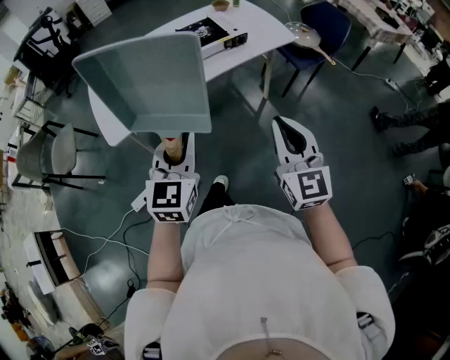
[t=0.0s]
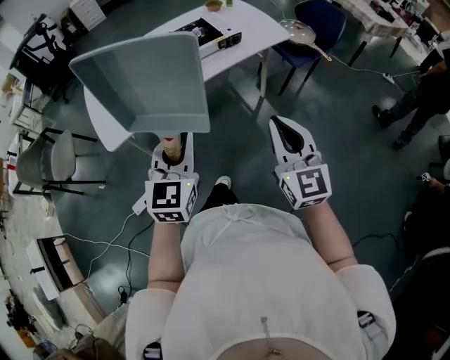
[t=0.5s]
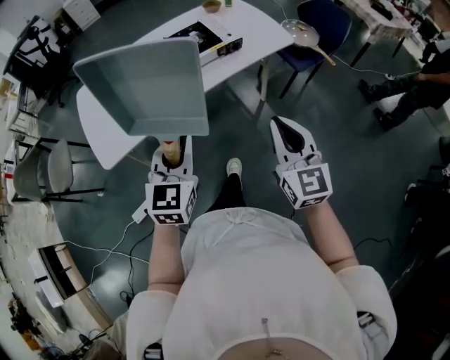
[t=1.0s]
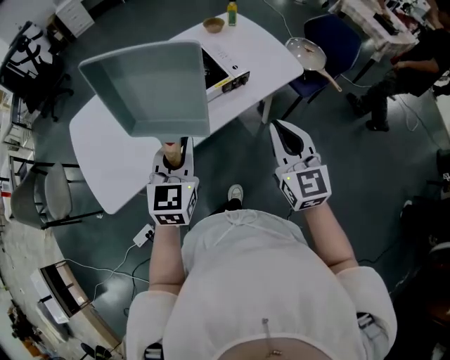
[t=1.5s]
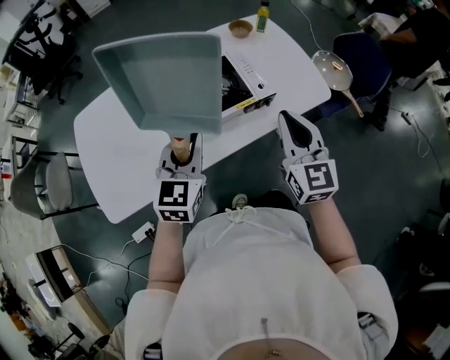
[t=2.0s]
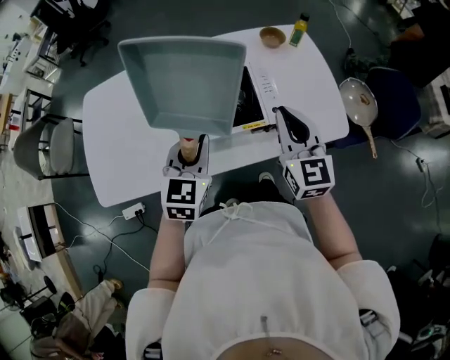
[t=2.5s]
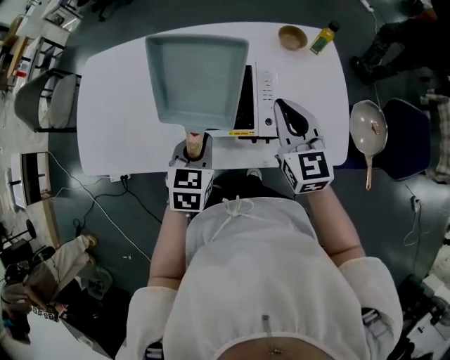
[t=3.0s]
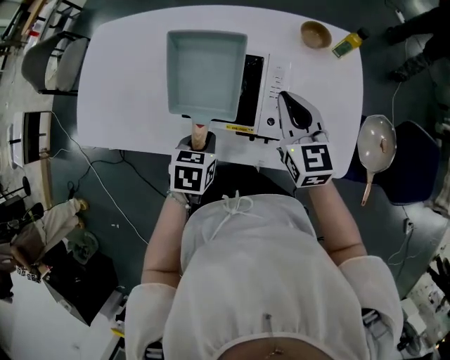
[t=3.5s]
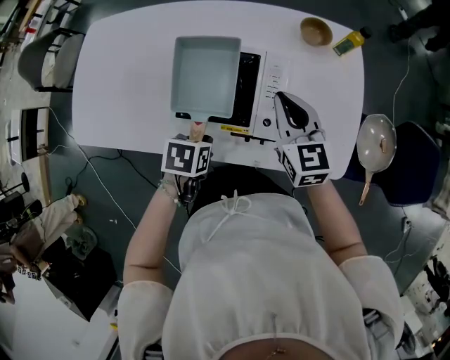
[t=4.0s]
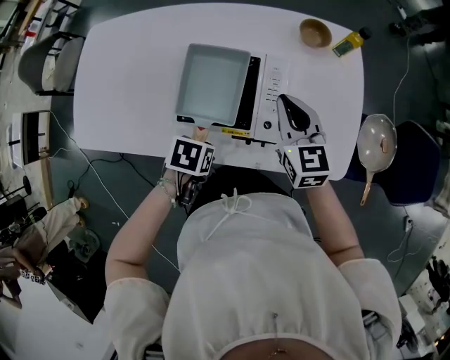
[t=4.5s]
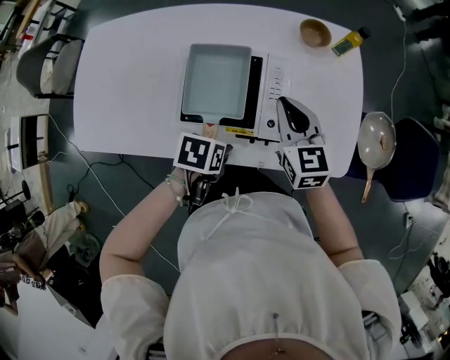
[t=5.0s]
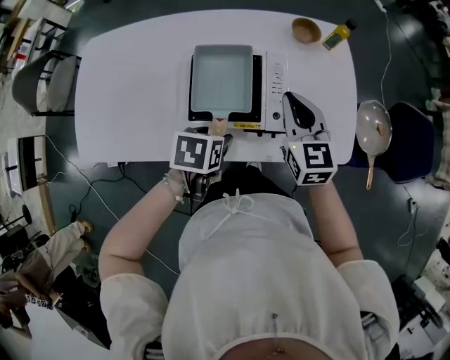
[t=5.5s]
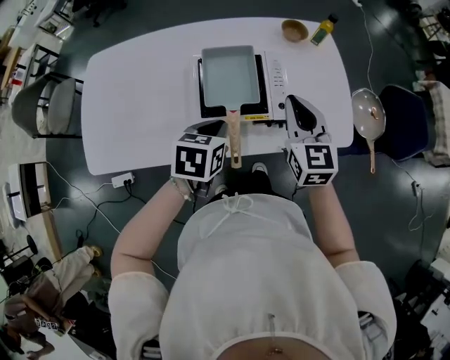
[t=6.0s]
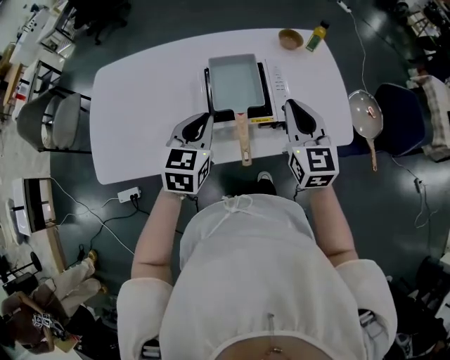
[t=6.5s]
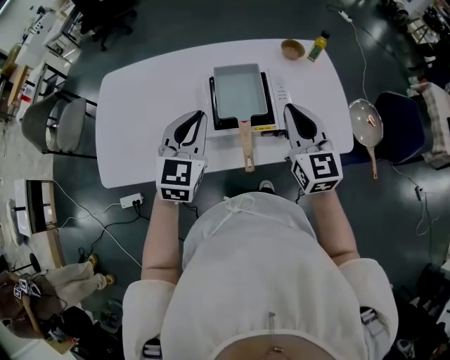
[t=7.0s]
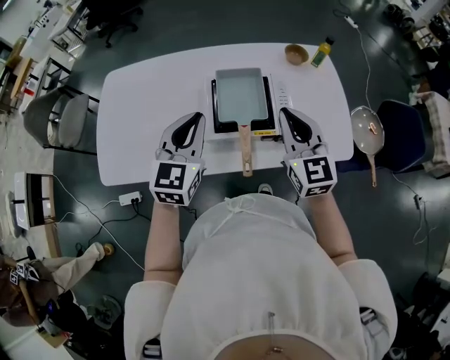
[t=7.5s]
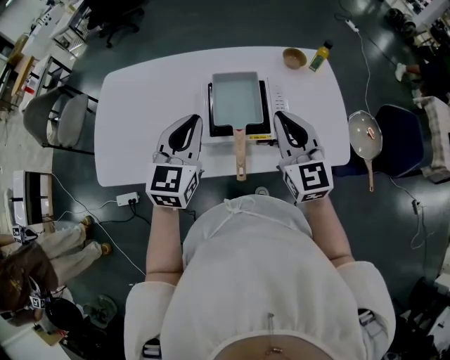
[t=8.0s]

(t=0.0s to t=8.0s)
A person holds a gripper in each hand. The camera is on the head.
t=0.0s - t=2.0s: The pair of grippers is taken forward, approximately 40 cm.
t=2.0s - t=4.0s: The right gripper shifts by about 30 cm, and changes its angle by approximately 40 degrees; the left gripper travels downward by roughly 20 cm, and tilts its fingers roughly 50 degrees downward.
t=4.0s - t=6.0s: The left gripper moves upward, about 10 cm, turns by approximately 30 degrees, and opens and closes again. Meanwhile the right gripper heads backward and upward, covering roughly 10 cm, and changes its angle by some 20 degrees.
t=6.0s - t=8.0s: The right gripper shifts approximately 5 cm upward; the left gripper shifts approximately 15 cm upward and to the left, and points its fingers approximately 40 degrees further upward.

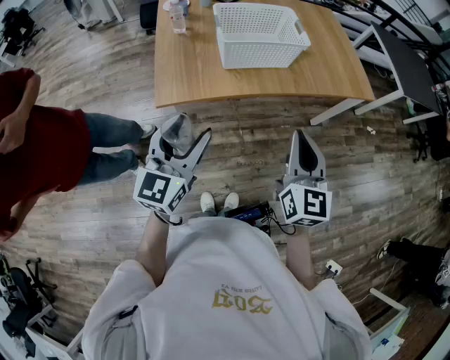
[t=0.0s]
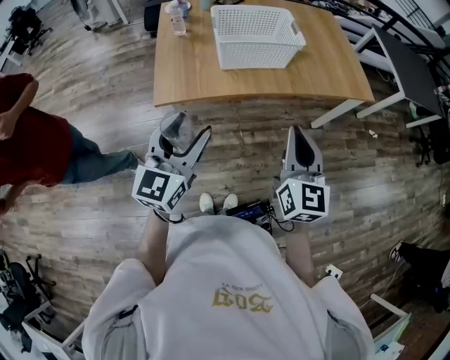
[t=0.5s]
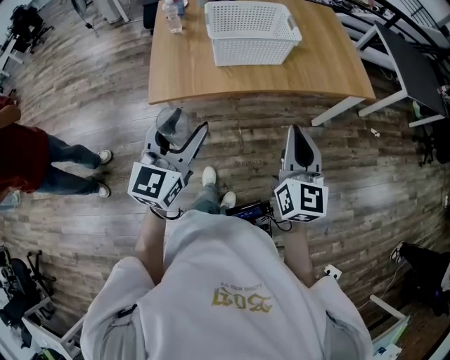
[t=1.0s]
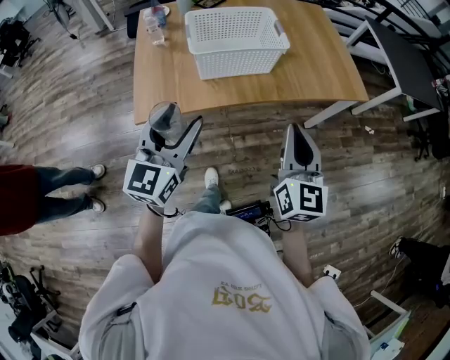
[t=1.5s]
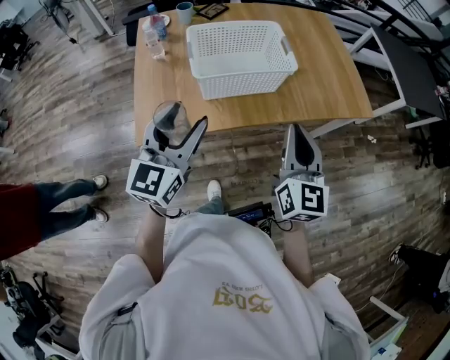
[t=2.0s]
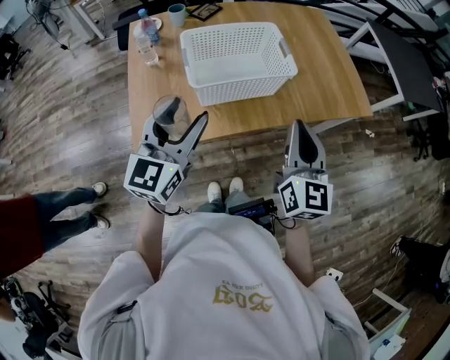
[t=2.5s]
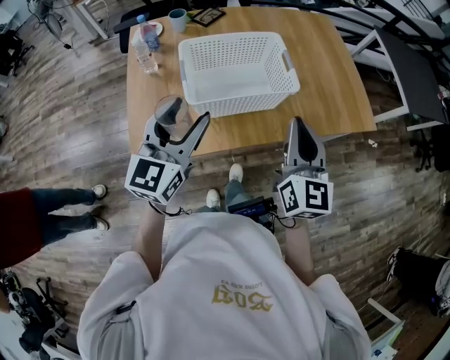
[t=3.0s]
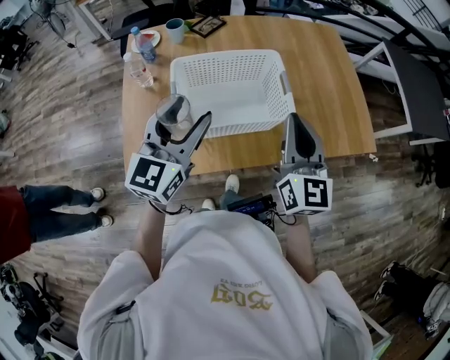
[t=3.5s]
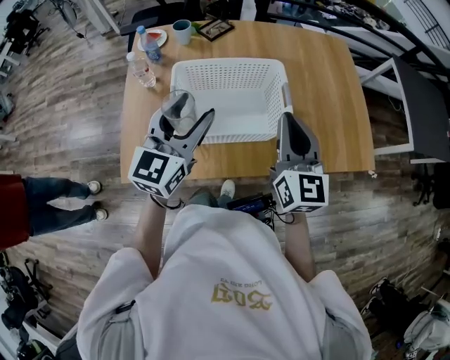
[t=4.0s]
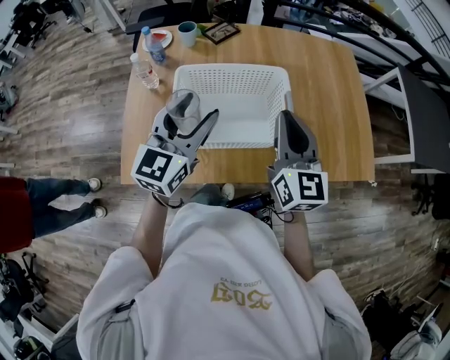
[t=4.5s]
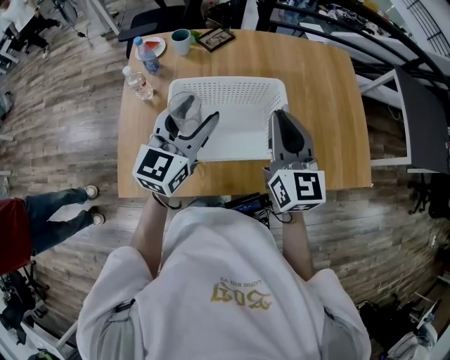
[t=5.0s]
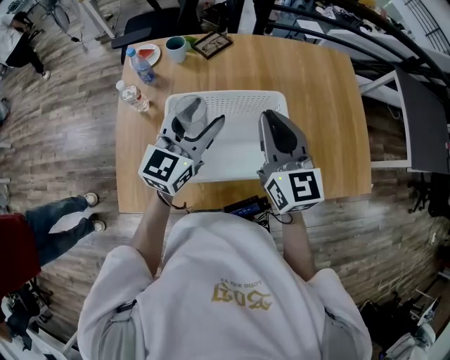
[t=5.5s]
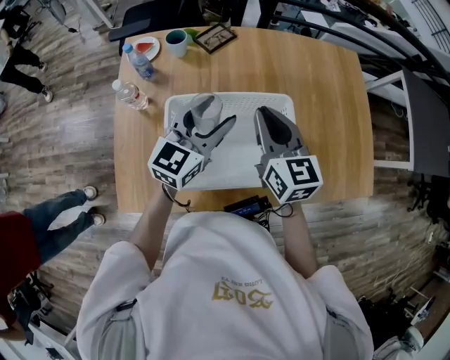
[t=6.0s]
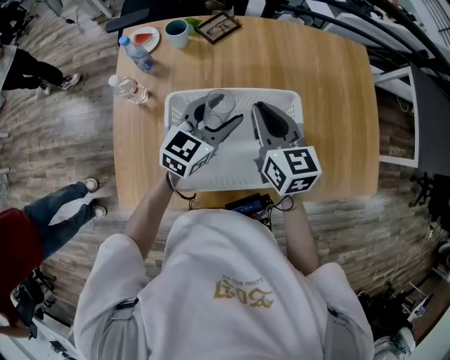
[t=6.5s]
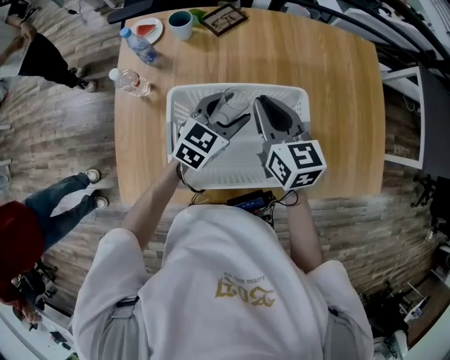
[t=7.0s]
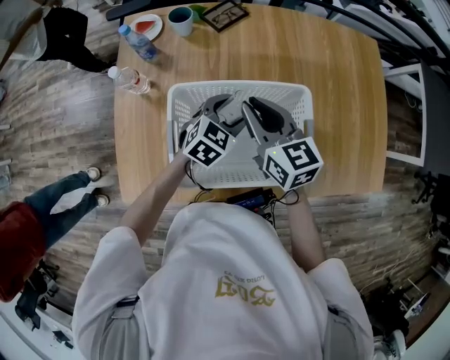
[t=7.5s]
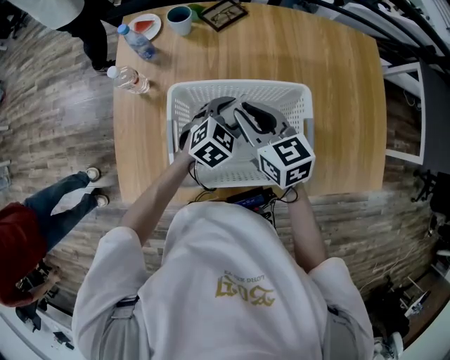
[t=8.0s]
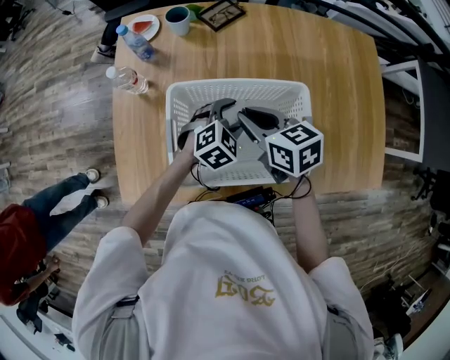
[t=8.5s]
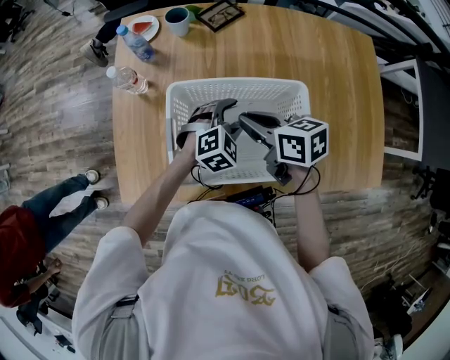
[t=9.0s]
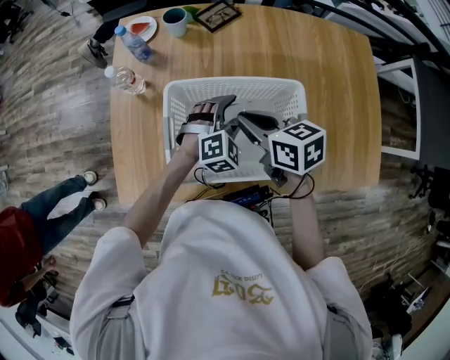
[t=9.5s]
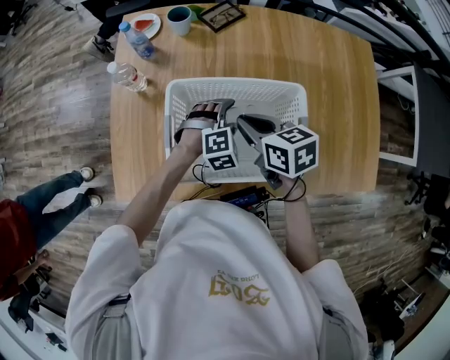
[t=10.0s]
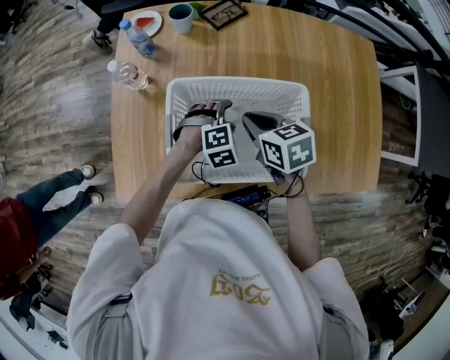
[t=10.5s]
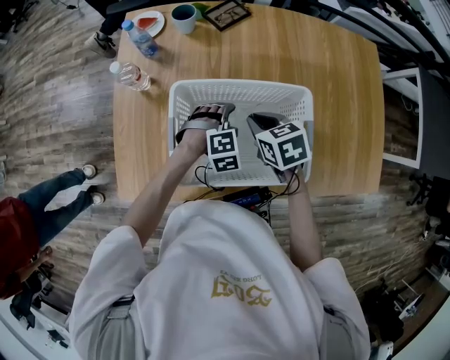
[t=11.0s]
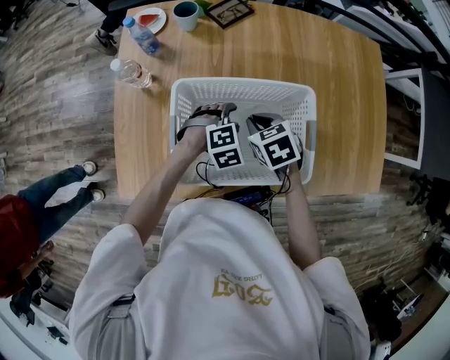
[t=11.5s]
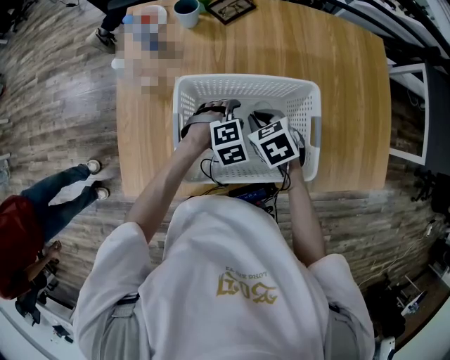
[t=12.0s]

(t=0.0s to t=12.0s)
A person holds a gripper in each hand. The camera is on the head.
t=0.0s - t=2.0s: Both grippers move forward, roughly 15 cm.
t=2.0s - t=4.0s: The two grippers go approximately 25 cm forward.
t=4.0s - t=6.0s: The left gripper goes roughly 15 cm forward, while the right gripper heads forward and to the left, covering roughly 15 cm.
t=6.0s - t=8.0s: The left gripper heads downward, covering some 15 cm, and angles its fingers downward, by approximately 40 degrees. Meanwhile the right gripper travels downward and to the left by some 10 cm, and swivels about 20 degrees.
t=8.0s - t=10.0s: The right gripper changes its angle by approximately 20 degrees; the left gripper rotates roughly 30 degrees.
t=10.0s - t=12.0s: The right gripper goes some 10 cm downward, and turns by some 30 degrees.

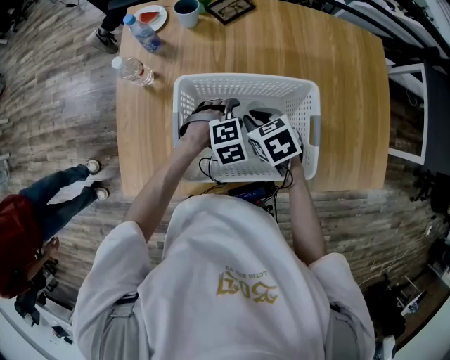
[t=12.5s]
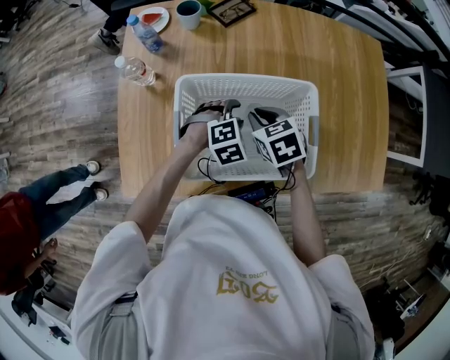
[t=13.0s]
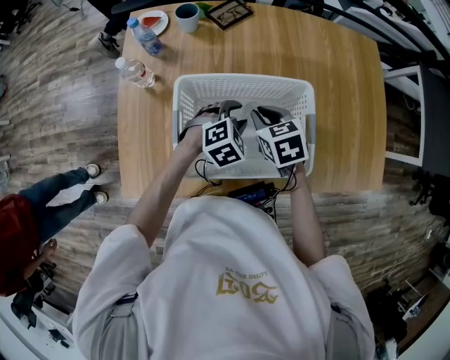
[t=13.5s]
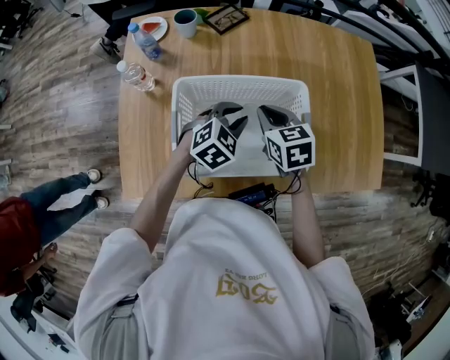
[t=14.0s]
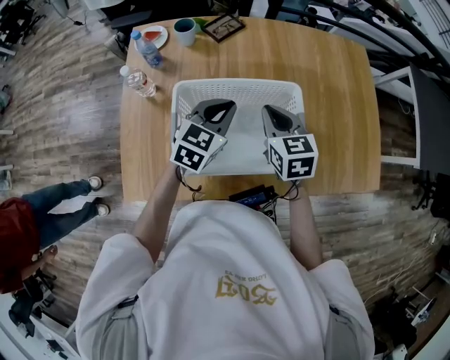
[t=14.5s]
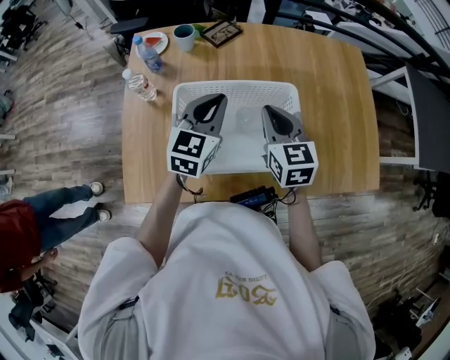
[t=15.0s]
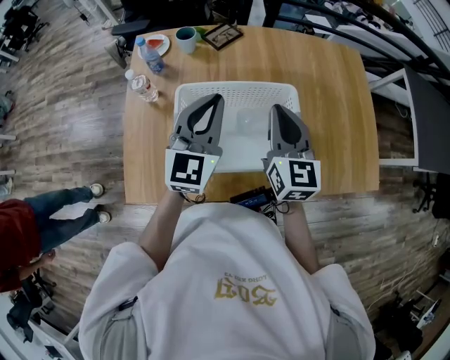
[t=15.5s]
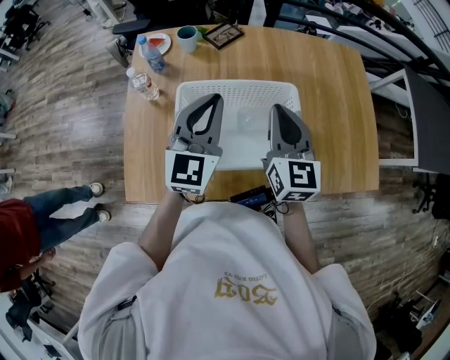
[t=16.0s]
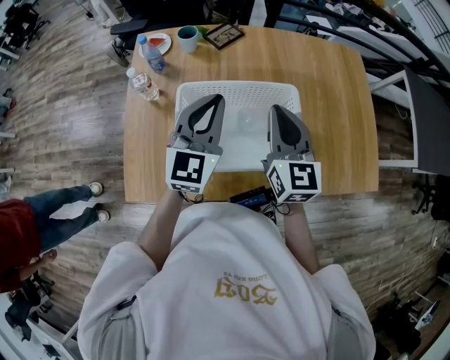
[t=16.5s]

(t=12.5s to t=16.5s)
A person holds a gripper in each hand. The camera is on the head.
t=12.5s - t=14.5s: The right gripper goes approximately 10 cm upward and to the right, and swivels approximately 30 degrees. Meanwhile the left gripper heads upward, covering approximately 15 cm, tilts its fingers roughly 40 degrees upward, and closes its fingers.
t=14.5s - t=16.5s: Both grippers move upward, roughly 10 cm. The right gripper swivels some 30 degrees. The left gripper changes its angle by about 30 degrees.

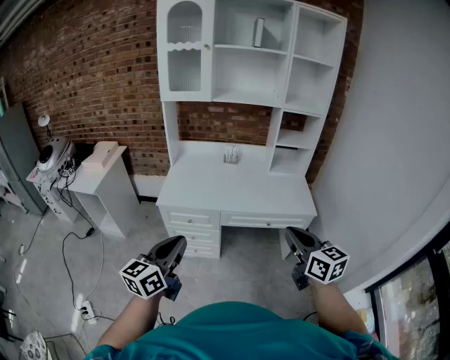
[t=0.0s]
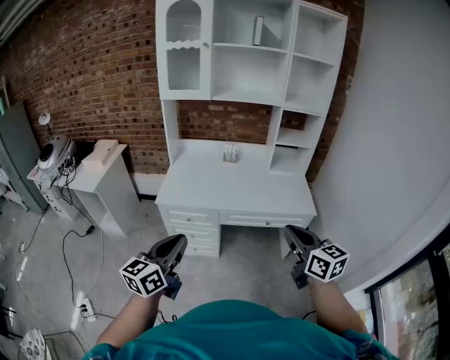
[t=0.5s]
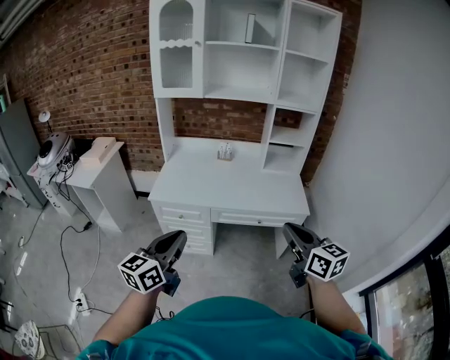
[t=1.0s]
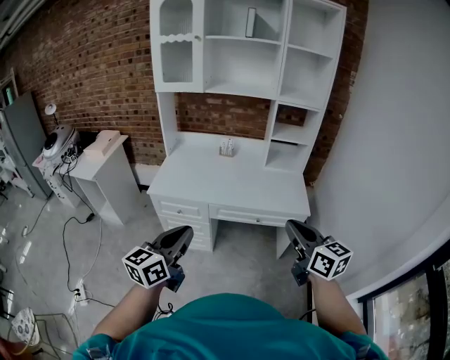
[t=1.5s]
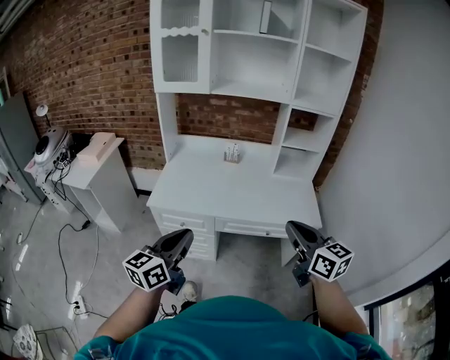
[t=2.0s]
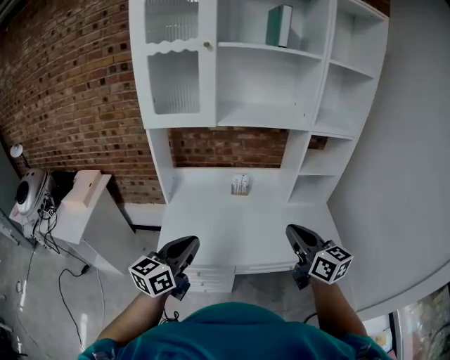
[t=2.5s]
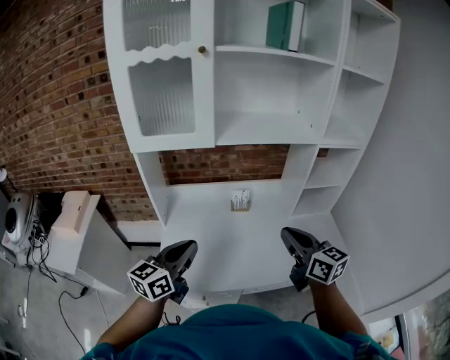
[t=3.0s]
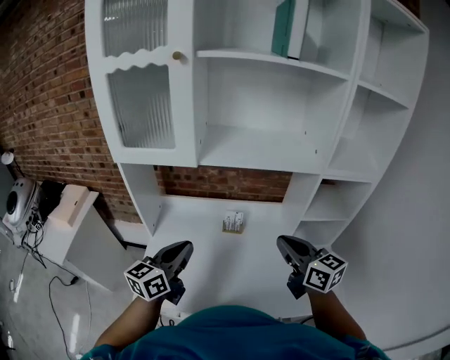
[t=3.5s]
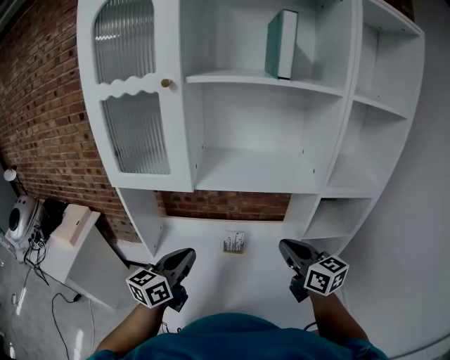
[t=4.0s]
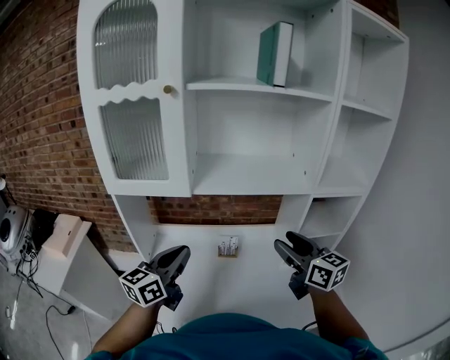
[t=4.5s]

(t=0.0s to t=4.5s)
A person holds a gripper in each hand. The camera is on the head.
t=0.0s - t=2.0s: The left gripper moves forward and to the right, approximately 15 cm. The right gripper shifts approximately 10 cm forward.
t=2.0s - t=4.5s: Both grippers are carried forward, some 50 cm. The right gripper opens up.
